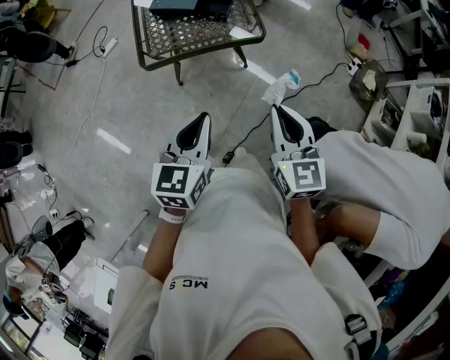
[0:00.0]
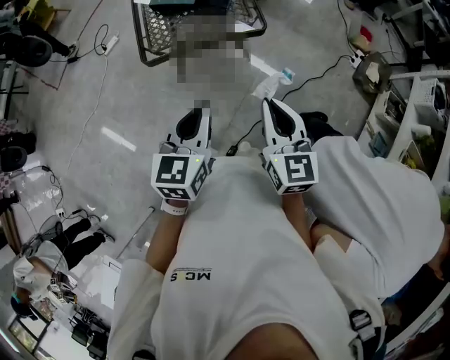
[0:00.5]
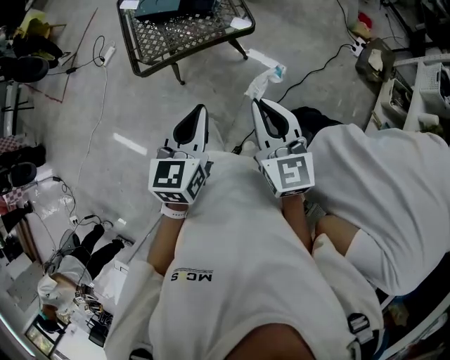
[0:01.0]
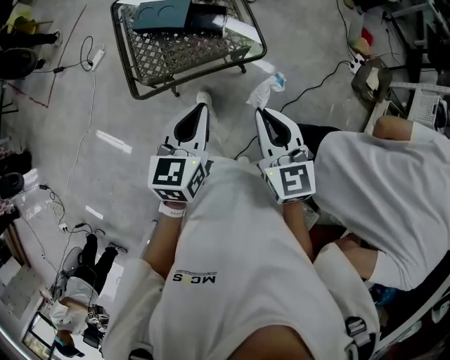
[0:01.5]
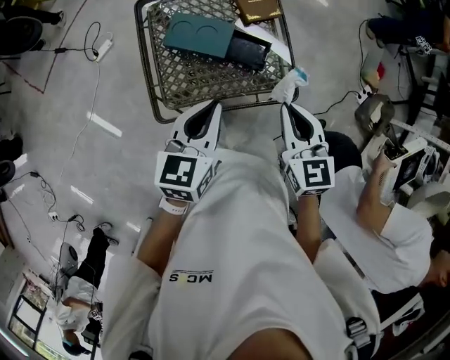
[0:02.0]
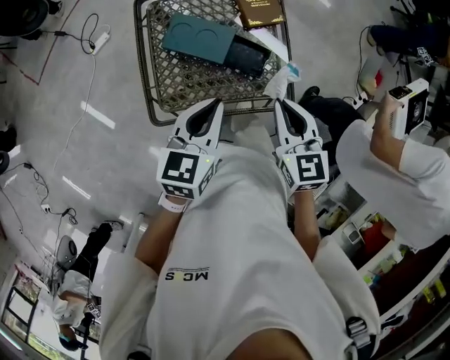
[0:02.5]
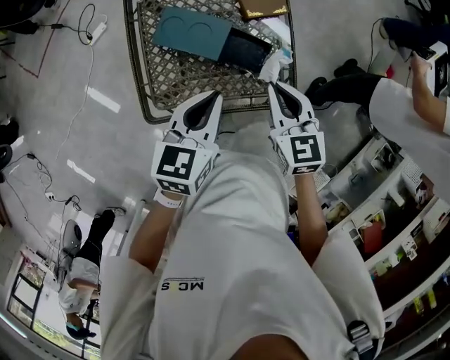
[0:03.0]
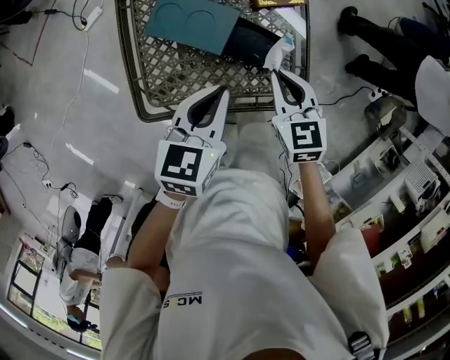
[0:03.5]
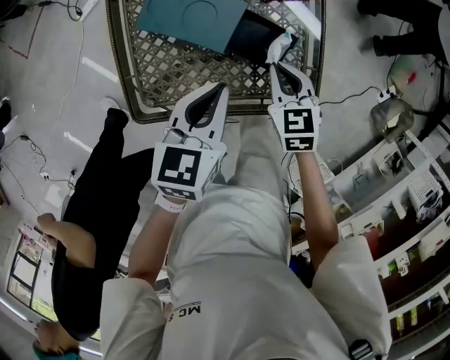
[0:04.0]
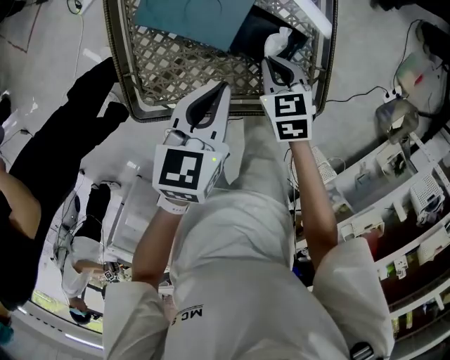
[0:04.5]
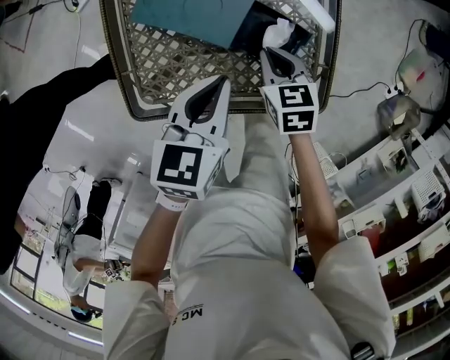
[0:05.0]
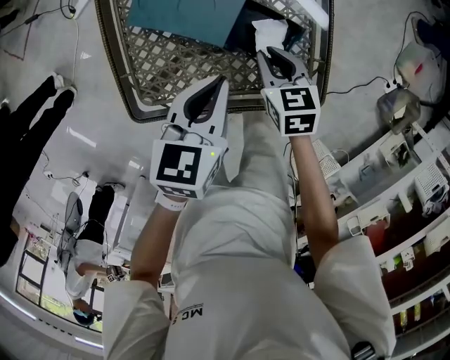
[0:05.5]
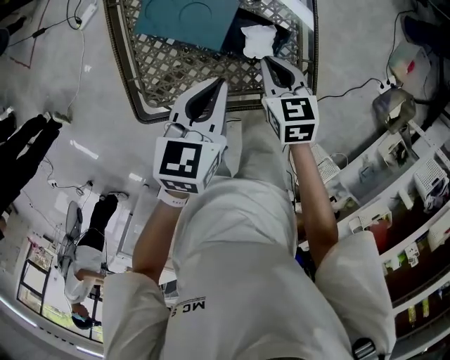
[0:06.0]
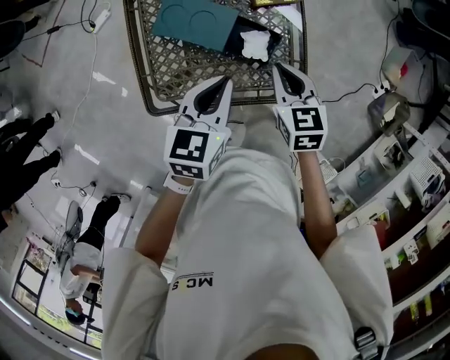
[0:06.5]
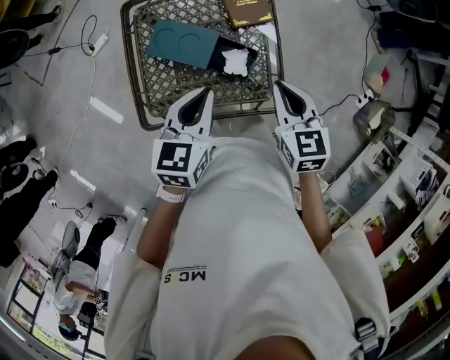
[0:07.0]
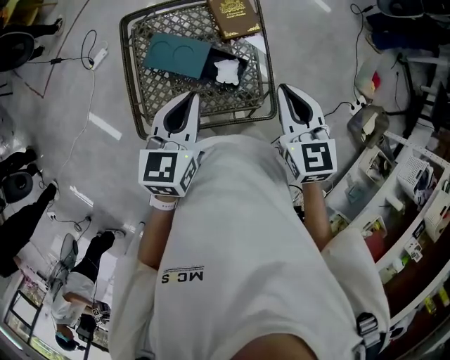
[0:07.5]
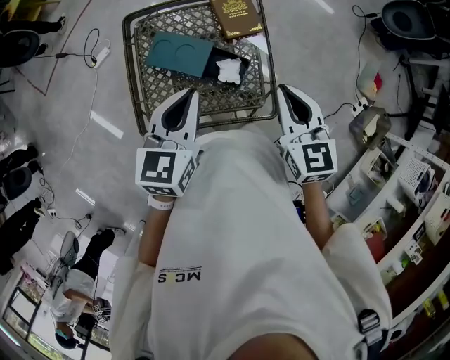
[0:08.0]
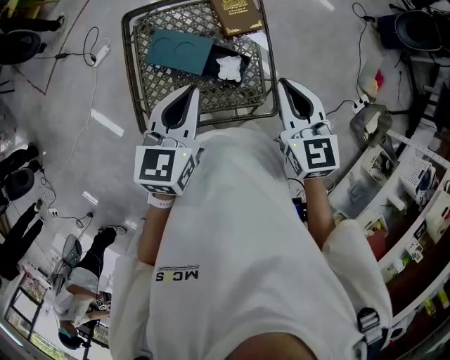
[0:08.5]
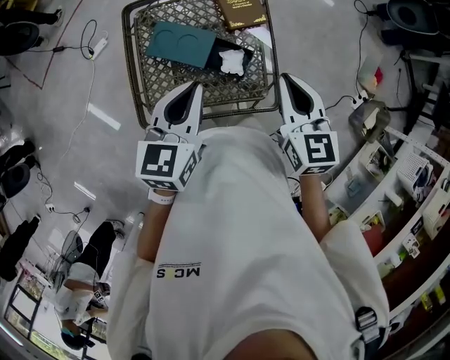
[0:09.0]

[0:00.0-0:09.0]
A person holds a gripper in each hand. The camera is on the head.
0:00.0 to 0:02.0: Both grippers move forward, approximately 35 cm.
0:02.0 to 0:04.5: The right gripper shifts roughly 35 cm downward and forward, and turns by some 30 degrees; the left gripper moves downward and forward, approximately 20 cm.
0:04.5 to 0:07.0: The left gripper is displaced upward by some 15 cm. The right gripper is displaced upward by about 25 cm, and changes its angle by some 20 degrees.
0:07.0 to 0:09.0: Both grippers move upward, roughly 5 cm.

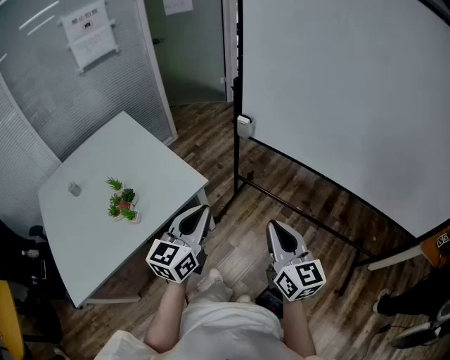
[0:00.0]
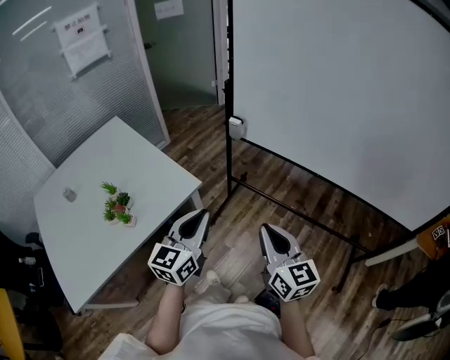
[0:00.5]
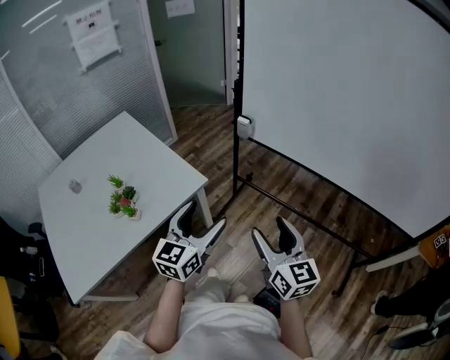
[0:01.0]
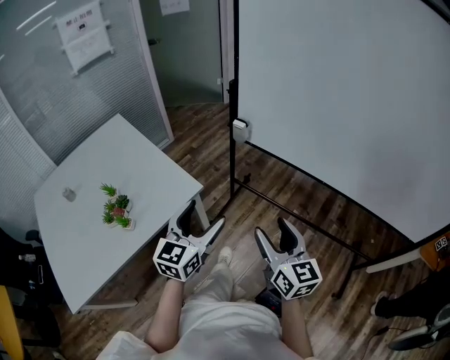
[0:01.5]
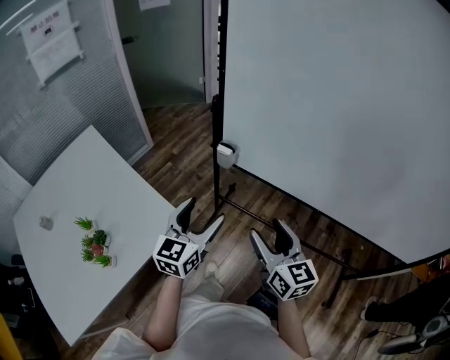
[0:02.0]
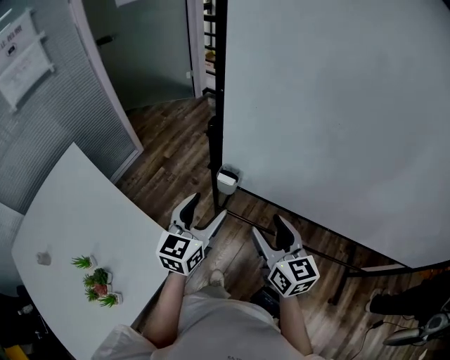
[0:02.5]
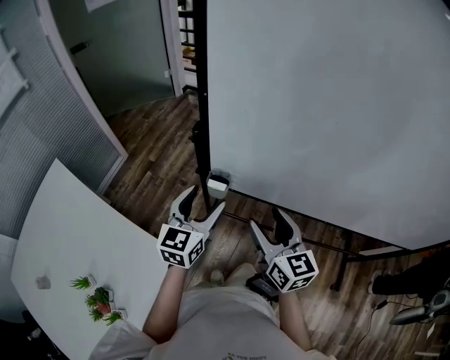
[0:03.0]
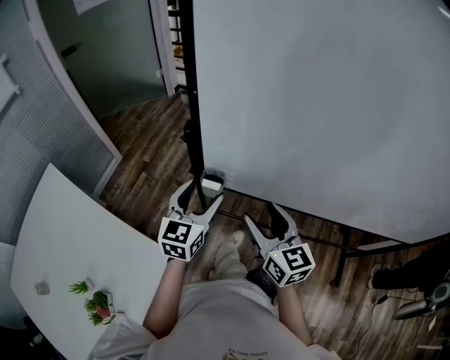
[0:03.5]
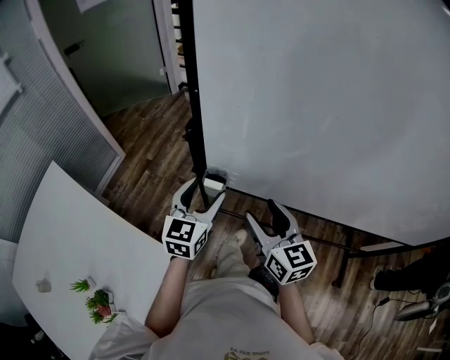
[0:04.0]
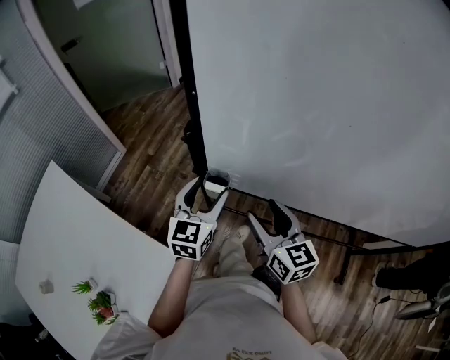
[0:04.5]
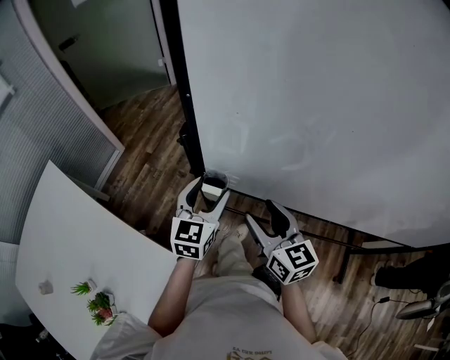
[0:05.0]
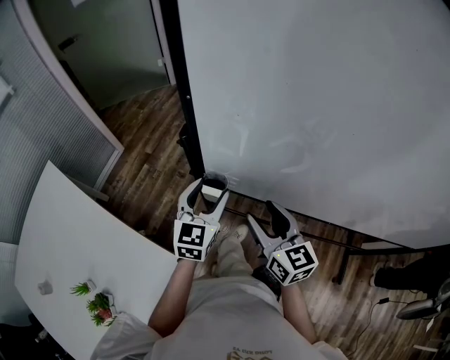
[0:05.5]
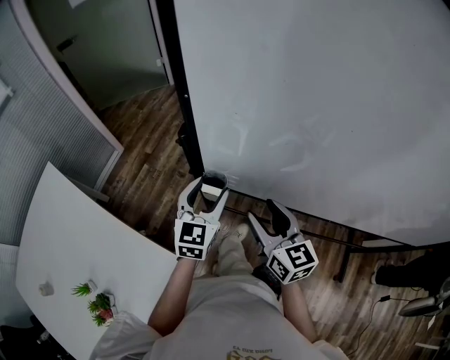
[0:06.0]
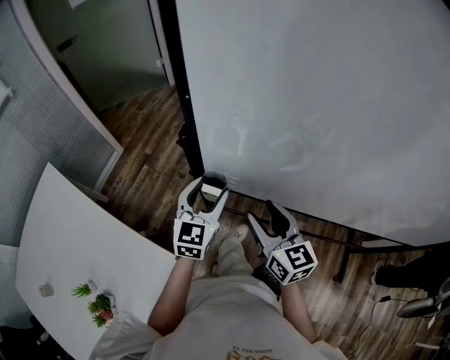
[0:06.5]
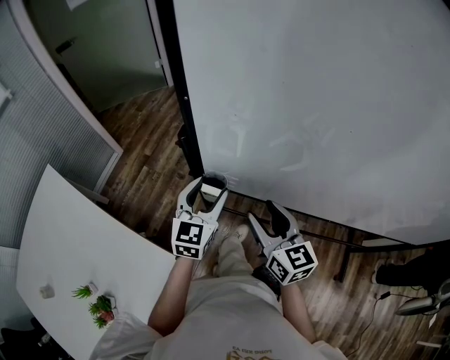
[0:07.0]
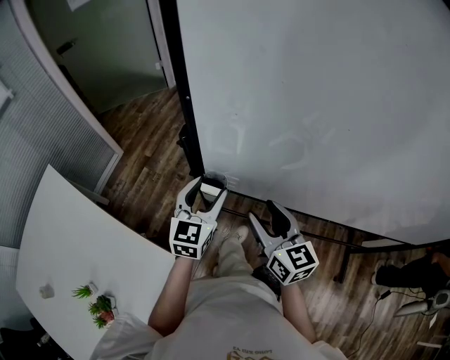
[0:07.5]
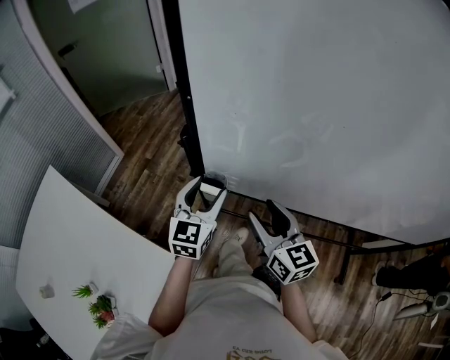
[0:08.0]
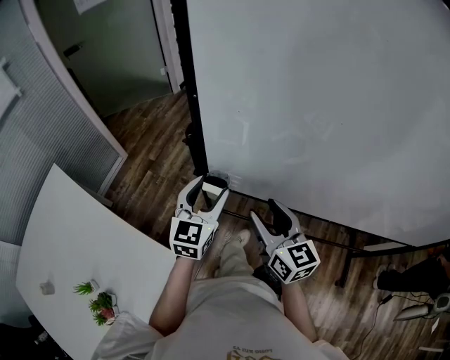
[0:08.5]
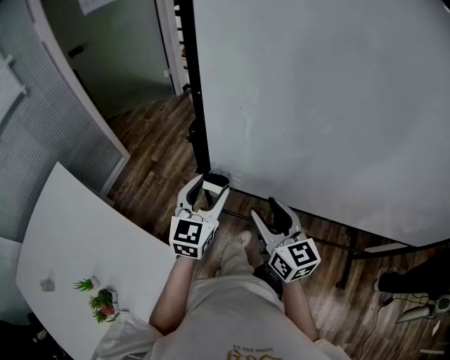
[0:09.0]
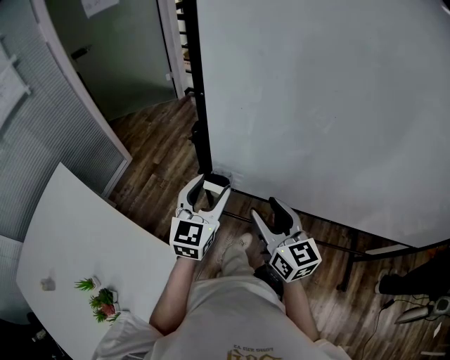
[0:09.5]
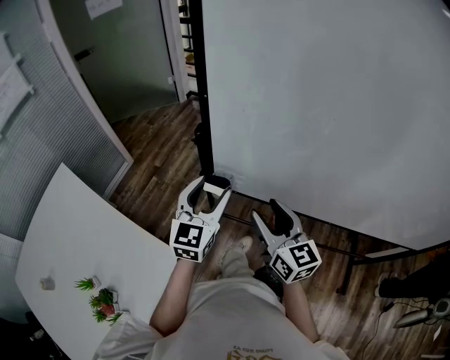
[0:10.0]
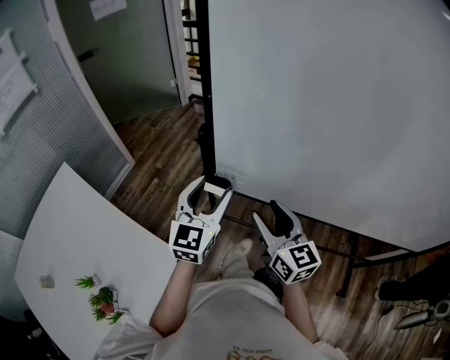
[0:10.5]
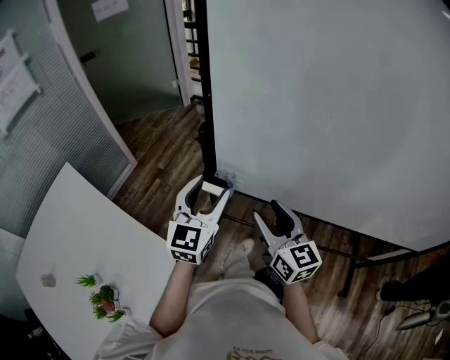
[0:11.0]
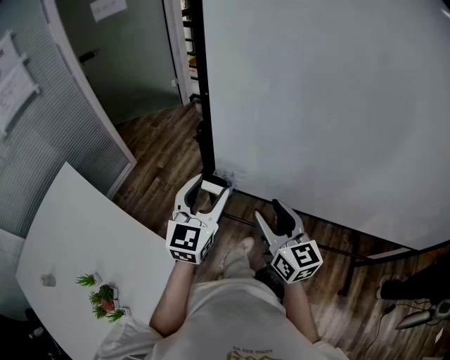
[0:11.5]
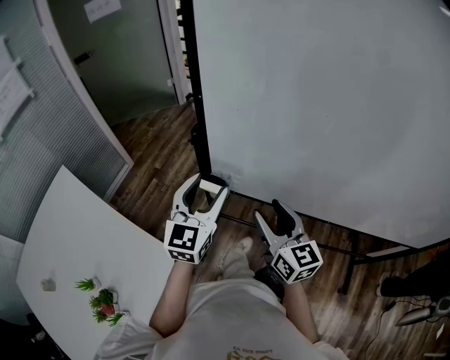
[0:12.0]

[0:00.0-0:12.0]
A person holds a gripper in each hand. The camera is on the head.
0:00.0 to 0:02.0: Both grippers move forward, about 20 cm. The left gripper opens up. The right gripper opens up.
0:02.0 to 0:04.0: The grippers both shift forward by some 20 cm.
0:04.0 to 0:08.0: There are only small adjustments of the grippers.
0:08.0 to 0:10.0: The left gripper moves upward, roughly 5 cm.
0:10.0 to 0:12.0: The grippers stay close to where they were, moving slightly.

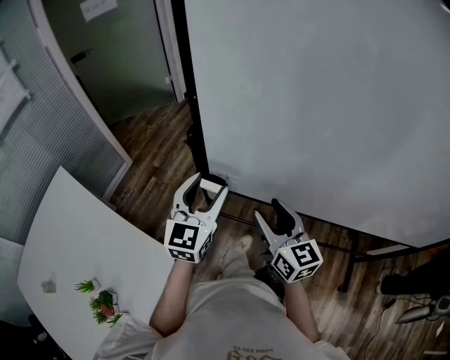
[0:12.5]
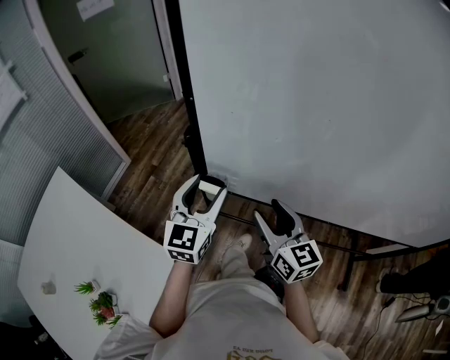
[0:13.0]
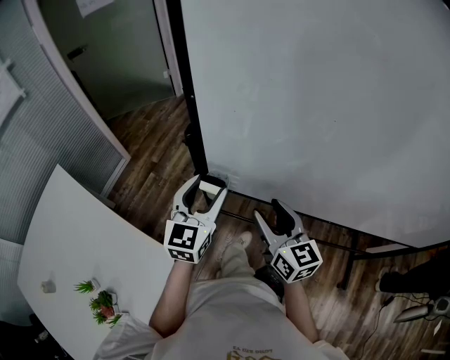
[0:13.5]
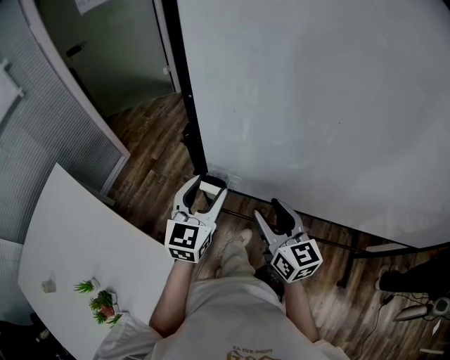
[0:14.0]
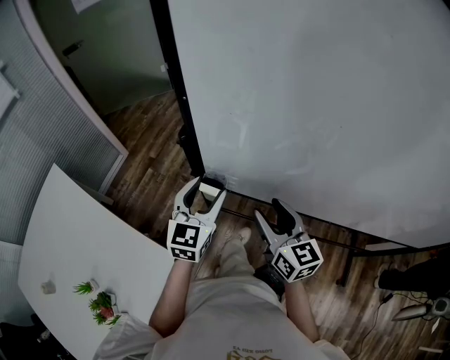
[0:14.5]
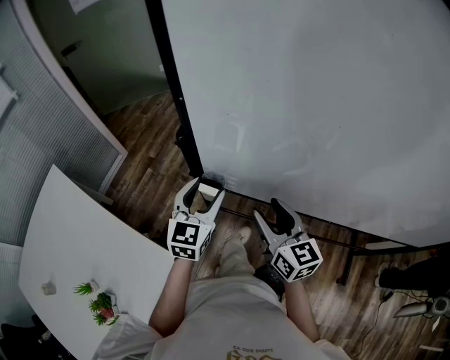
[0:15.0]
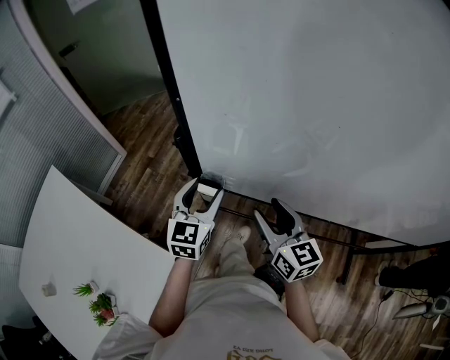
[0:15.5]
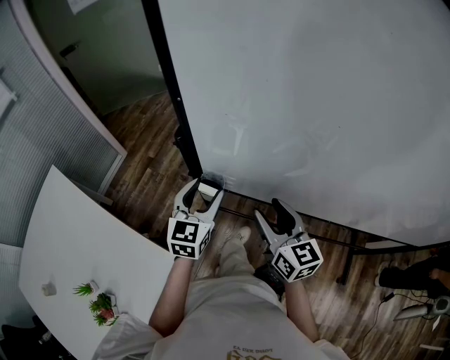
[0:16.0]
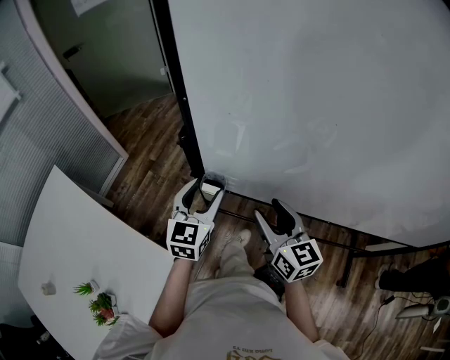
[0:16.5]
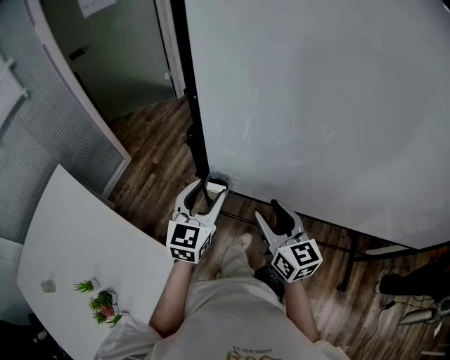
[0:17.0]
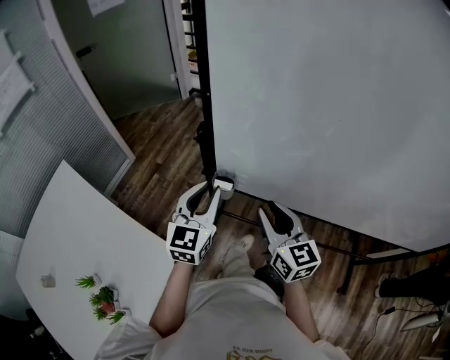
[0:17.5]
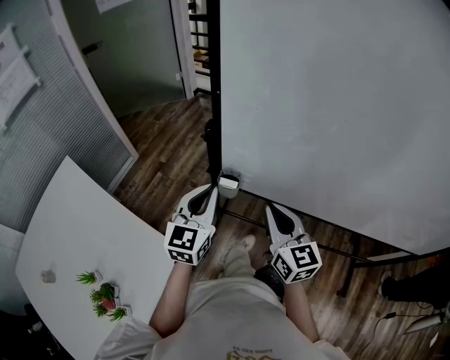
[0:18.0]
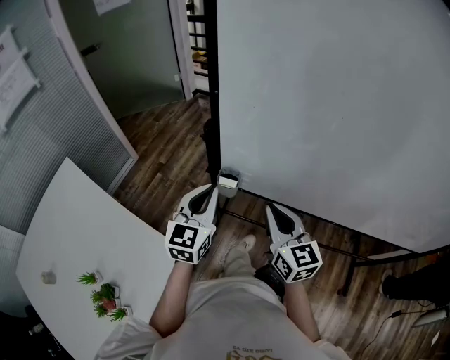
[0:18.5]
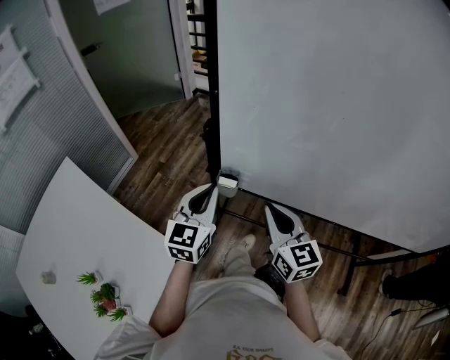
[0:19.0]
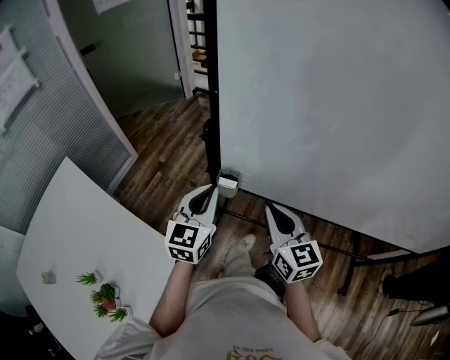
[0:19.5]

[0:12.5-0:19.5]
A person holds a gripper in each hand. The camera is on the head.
0:12.5 to 0:14.5: The left gripper is displaced downward by some 5 cm.
0:14.5 to 0:16.0: There are only small adjustments of the grippers.
0:16.0 to 0:17.5: The right gripper shifts by roughly 5 cm, and closes. The left gripper is displaced upward by about 5 cm, and closes up.
0:17.5 to 0:19.5: The right gripper closes.
